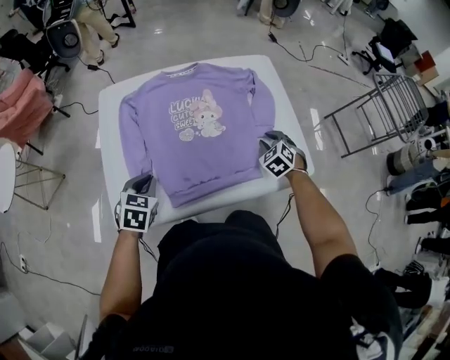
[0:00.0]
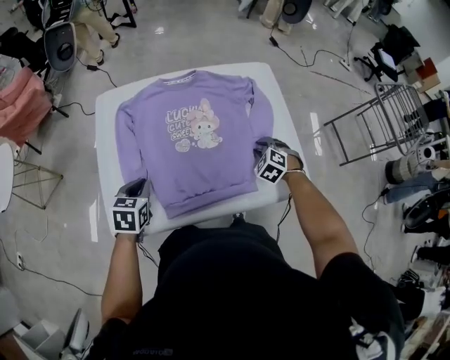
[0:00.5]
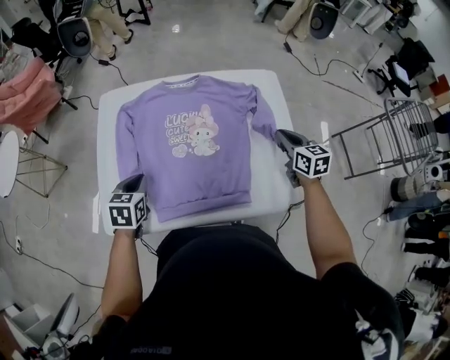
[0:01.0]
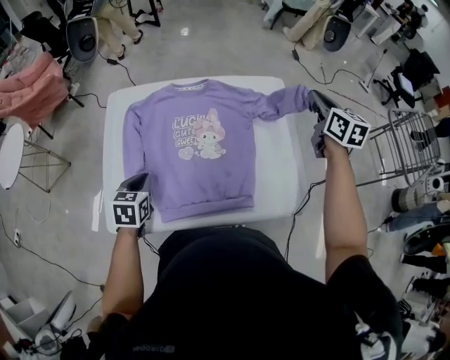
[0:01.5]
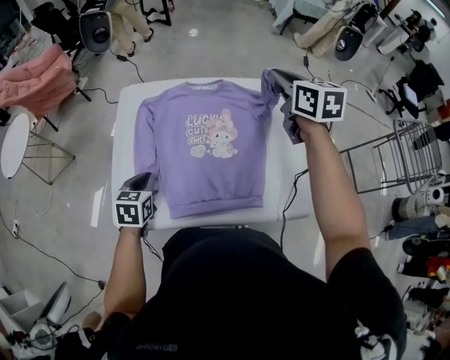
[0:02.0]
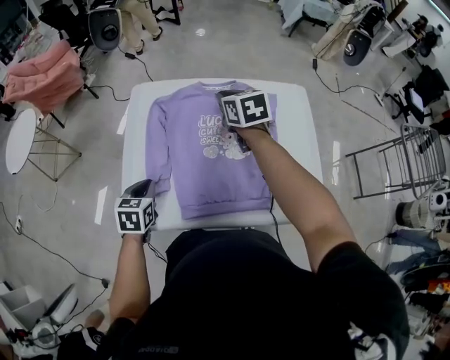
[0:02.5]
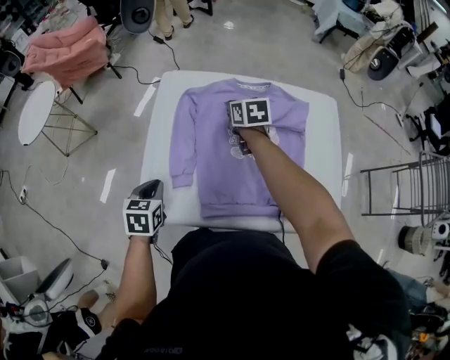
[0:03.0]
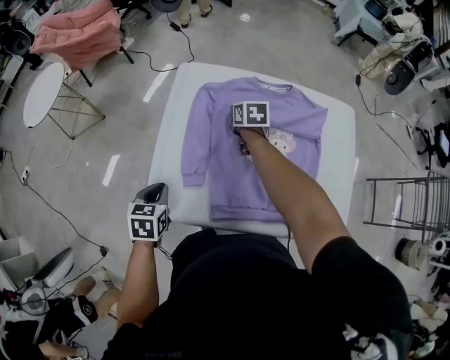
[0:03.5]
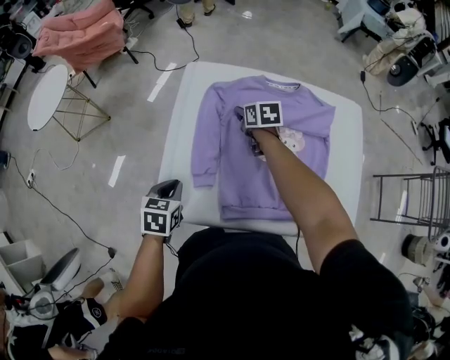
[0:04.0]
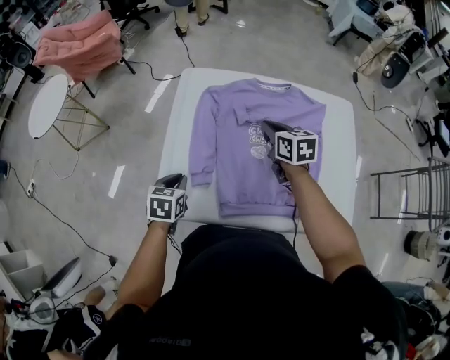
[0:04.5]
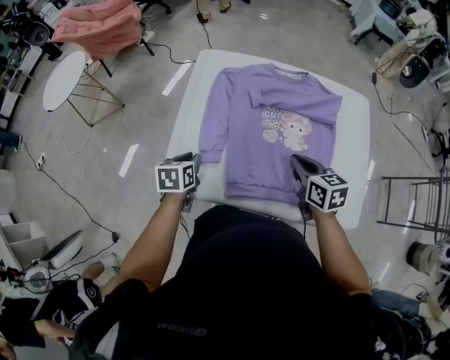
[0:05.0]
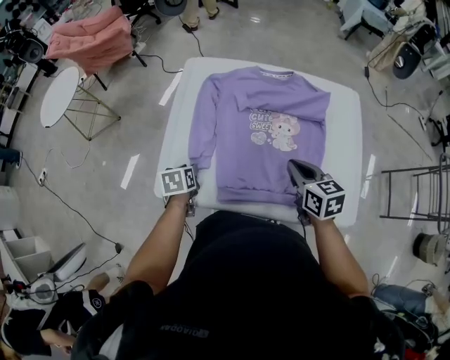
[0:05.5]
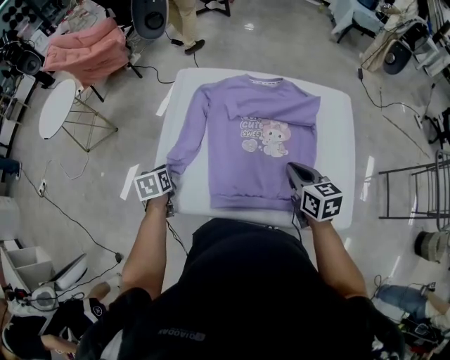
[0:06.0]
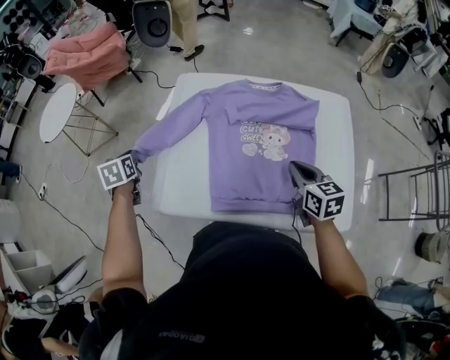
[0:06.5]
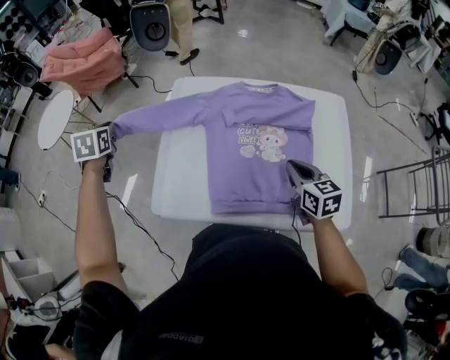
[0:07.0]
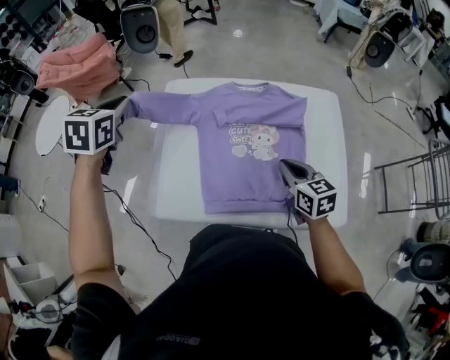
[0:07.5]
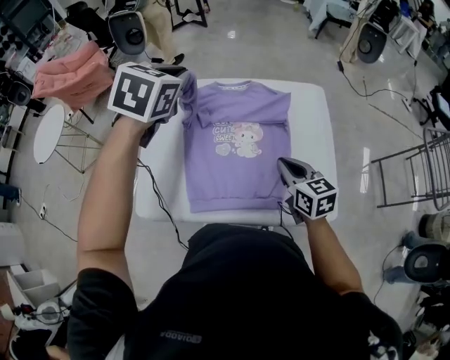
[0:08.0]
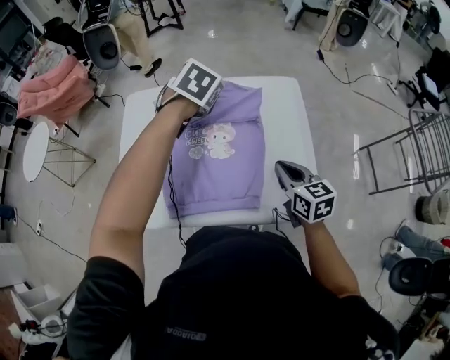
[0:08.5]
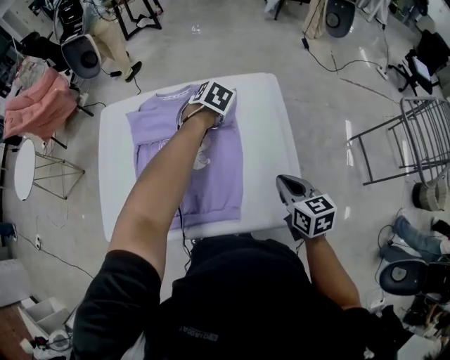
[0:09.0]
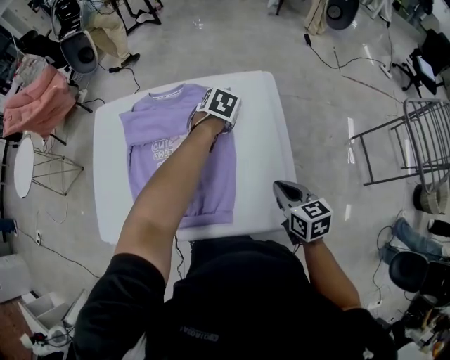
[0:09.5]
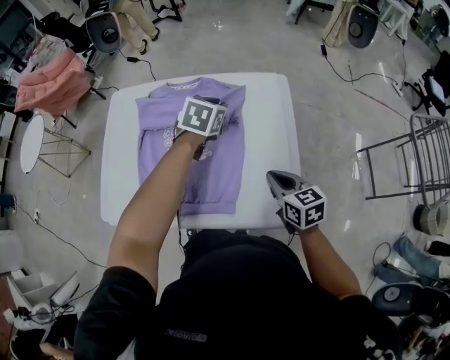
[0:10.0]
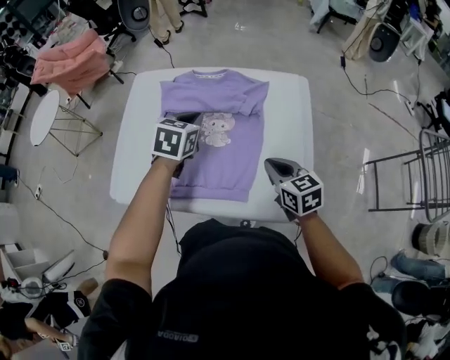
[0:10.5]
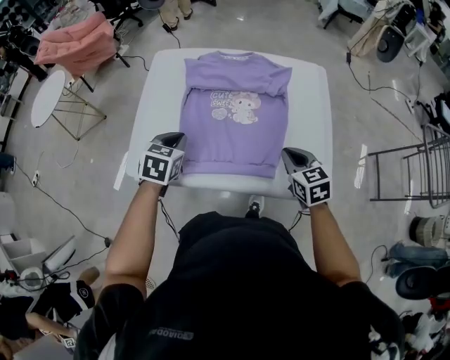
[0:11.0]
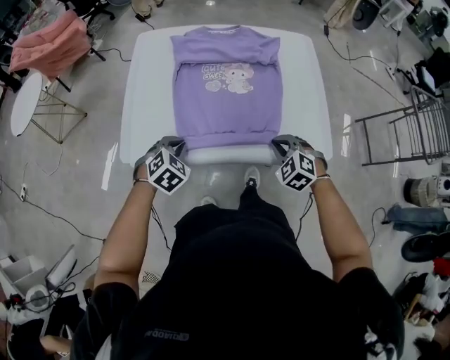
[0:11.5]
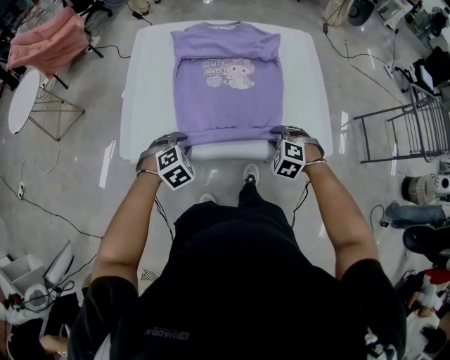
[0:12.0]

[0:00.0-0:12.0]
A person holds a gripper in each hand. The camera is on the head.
0:00.0 to 0:02.0: The right gripper goes some 35 cm upward and forward, rotates approximately 50 degrees, and closes, while the left gripper rotates approximately 20 degrees.
0:02.0 to 0:04.0: The right gripper heads downward and to the left, covering approximately 40 cm, turns by roughly 30 degrees, and opens up. The left gripper is displaced to the left by roughly 15 cm.
0:04.0 to 0:06.0: The left gripper moves approximately 5 cm, changes its angle by approximately 20 degrees, and opens, then closes once more. The right gripper moves backward and to the right, some 30 cm, and closes up.
0:06.0 to 0:08.0: The right gripper shifts about 5 cm to the right, while the left gripper moves upward and to the right, some 40 cm, and rolls clockwise, seen from behind, by approximately 50 degrees.
0:08.0 to 0:10.0: The right gripper travels to the right and downward by some 15 cm, while the left gripper travels to the right and downward by approximately 30 cm.
0:10.0 to 0:12.0: The left gripper heads backward, to the left and downward, covering some 50 cm, and changes its angle by about 40 degrees; the right gripper is displaced to the left, downward and backward by approximately 20 cm, twists approximately 70 degrees counterclockwise, seen from behind, and opens up.

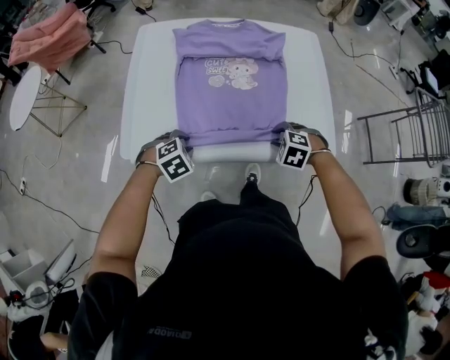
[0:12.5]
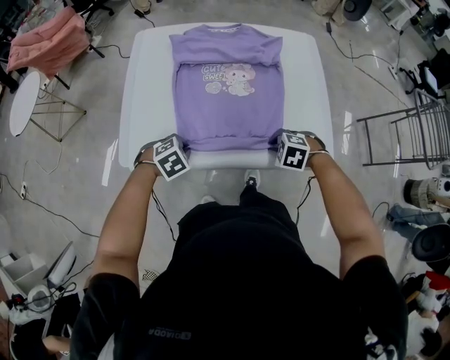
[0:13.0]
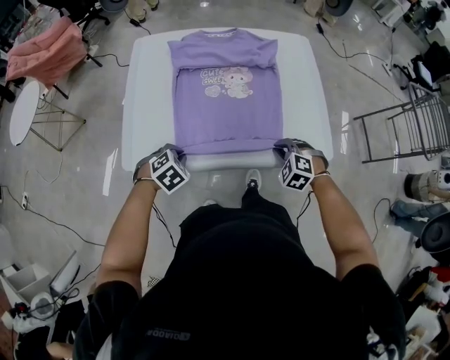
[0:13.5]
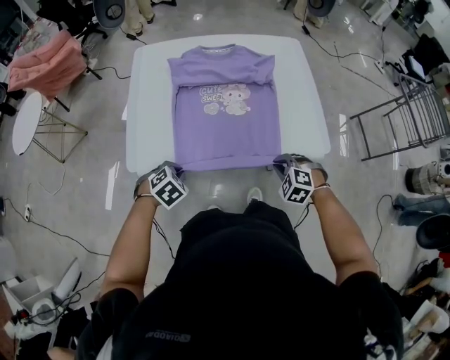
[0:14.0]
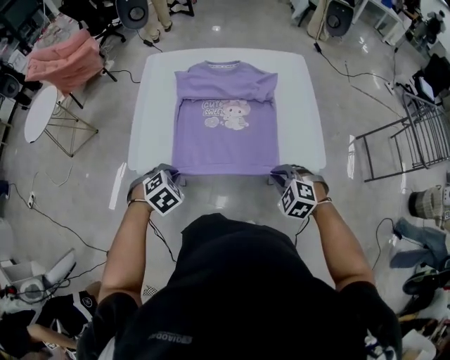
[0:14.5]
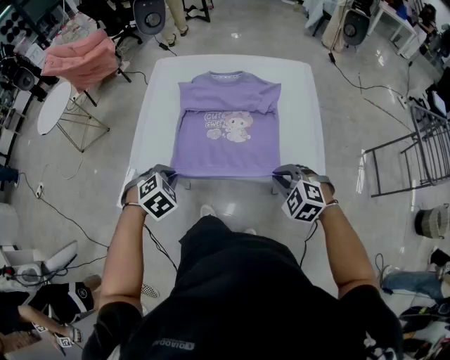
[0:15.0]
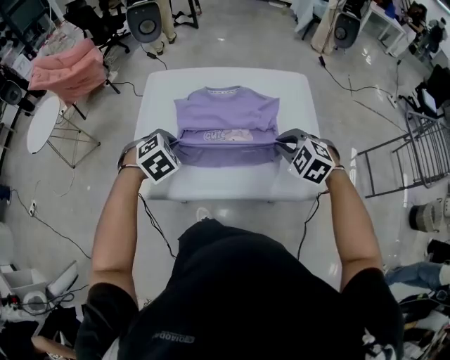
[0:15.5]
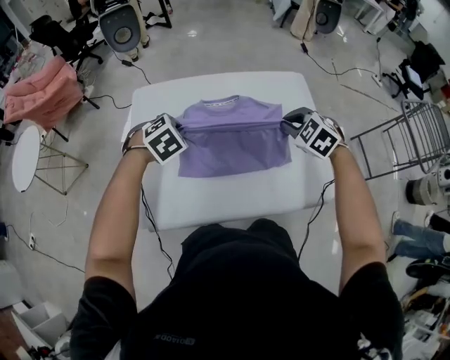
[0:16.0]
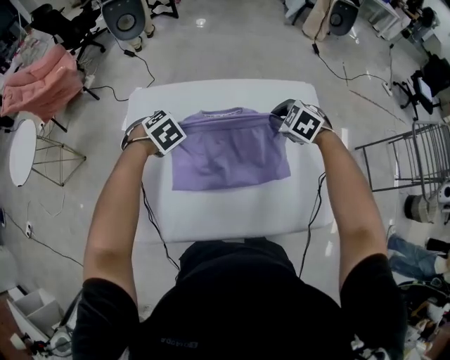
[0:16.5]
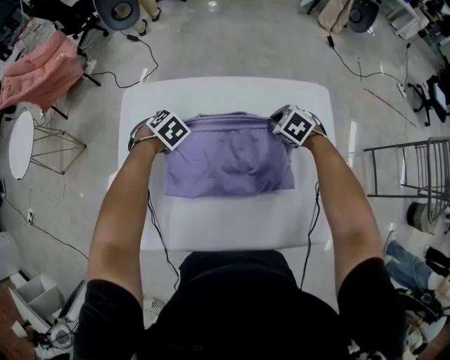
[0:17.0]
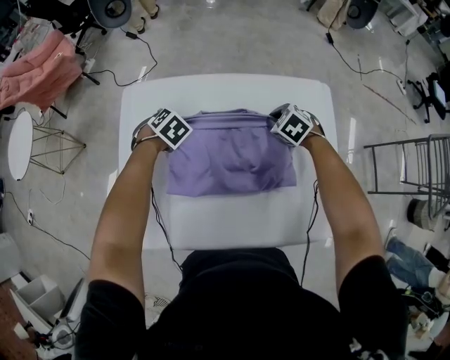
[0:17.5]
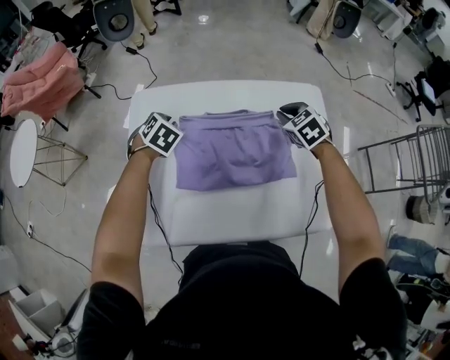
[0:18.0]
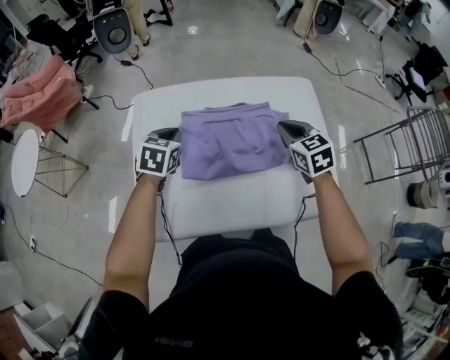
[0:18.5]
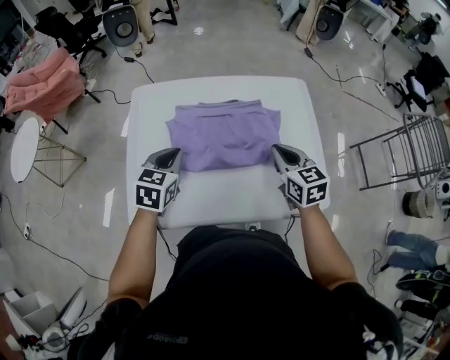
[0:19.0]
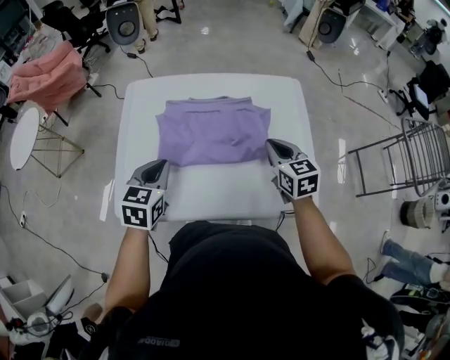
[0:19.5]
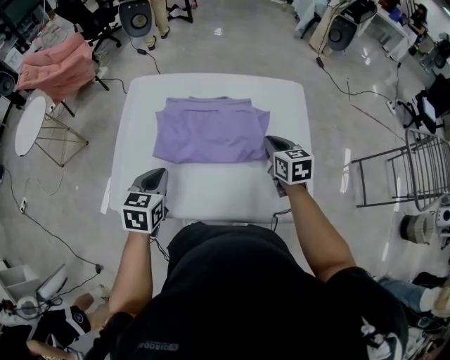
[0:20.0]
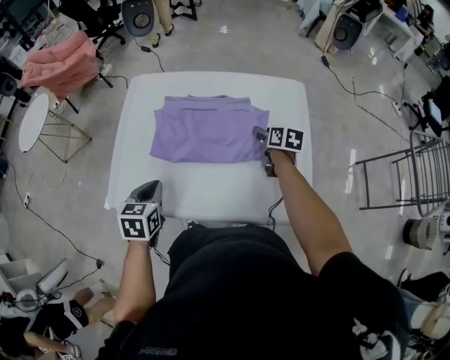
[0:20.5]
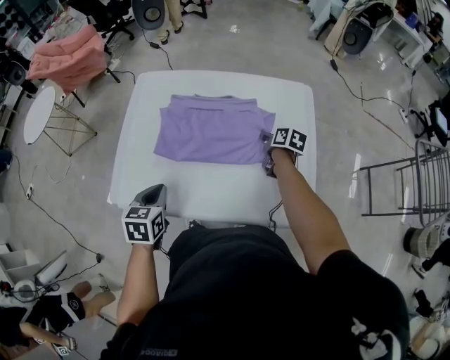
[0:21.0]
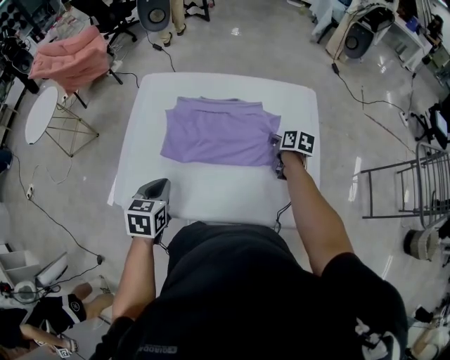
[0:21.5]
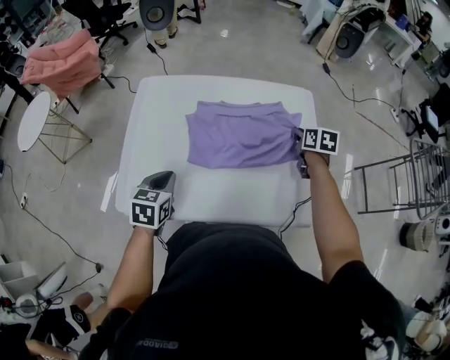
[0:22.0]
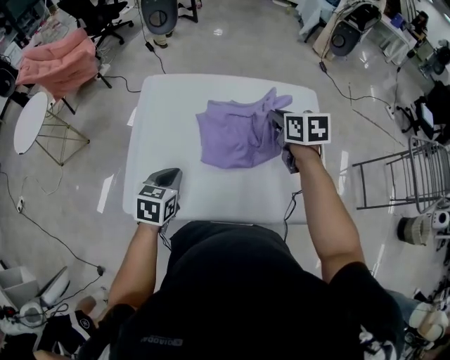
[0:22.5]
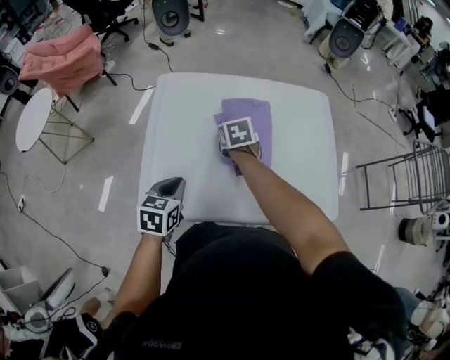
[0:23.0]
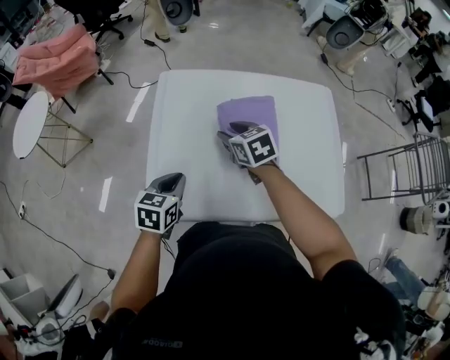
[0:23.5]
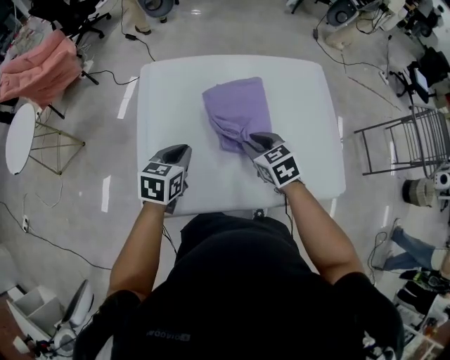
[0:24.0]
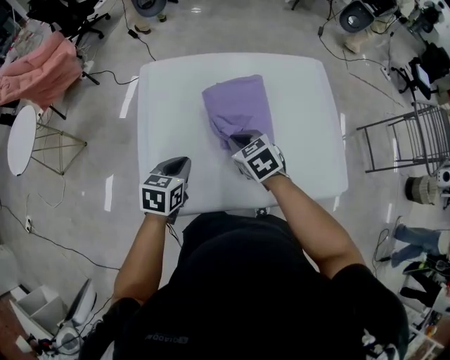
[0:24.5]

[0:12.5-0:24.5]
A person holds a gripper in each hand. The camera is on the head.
0:12.5 to 0:14.5: The right gripper ends up about 15 cm from where it was, and closes up. Meanwhile the left gripper changes place by approximately 10 cm, and closes.
0:14.5 to 0:16.5: The pair of grippers is taken forward, about 40 cm.
0:16.5 to 0:18.5: The right gripper travels downward and back again, approximately 10 cm each way, and rotates approximately 40 degrees; the left gripper travels downward and back again, some 10 cm each way, and changes its angle by roughly 40 degrees.
0:18.5 to 0:20.5: The left gripper is displaced backward by approximately 25 cm, and swivels roughly 20 degrees, while the right gripper travels downward and to the right by some 15 cm, changes its angle by approximately 40 degrees, and opens.
0:20.5 to 0:22.5: The right gripper is displaced upward and to the left by some 20 cm, and closes. The left gripper heads forward, covering approximately 5 cm.
0:22.5 to 0:24.5: The right gripper moves left and right over about 25 cm, changing direction 2 times, turns by about 20 degrees, and opens, then closes again.

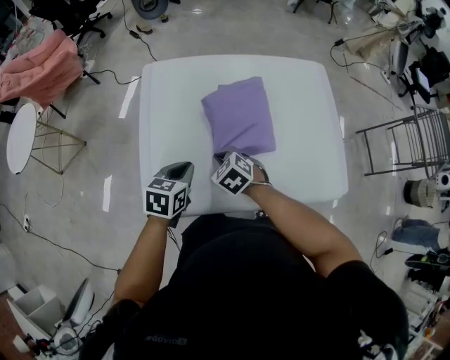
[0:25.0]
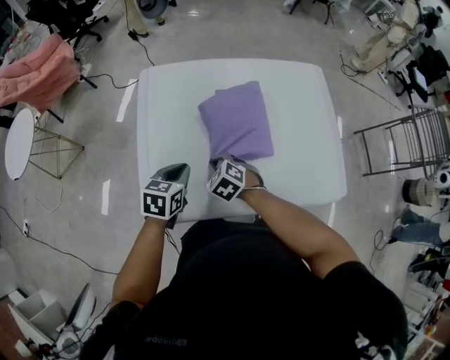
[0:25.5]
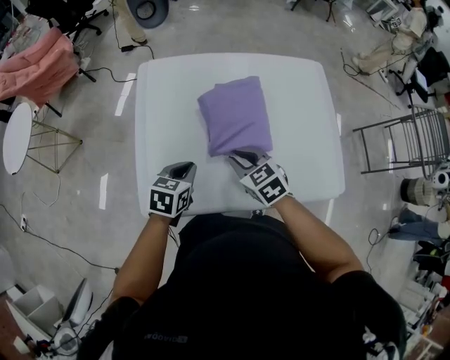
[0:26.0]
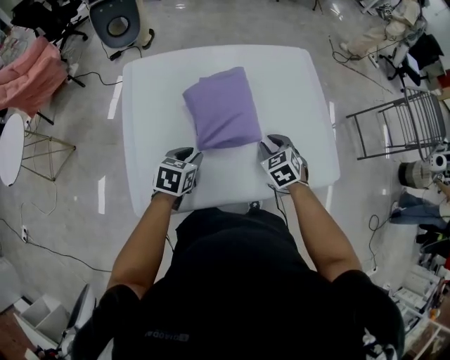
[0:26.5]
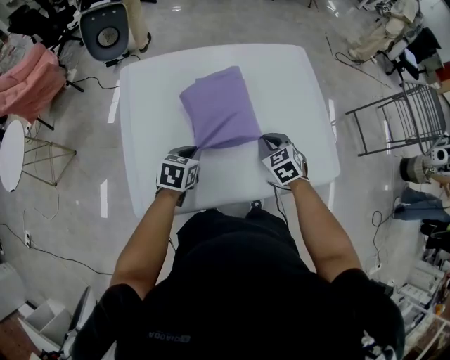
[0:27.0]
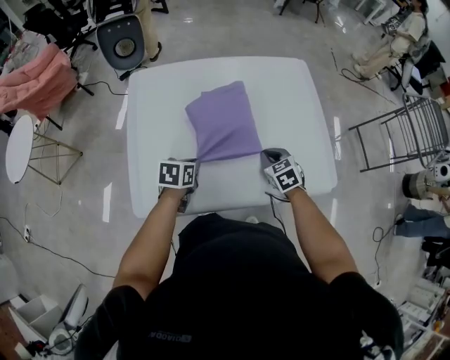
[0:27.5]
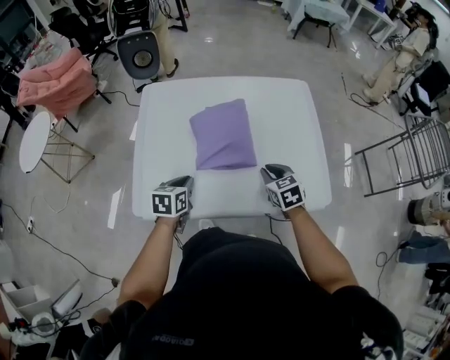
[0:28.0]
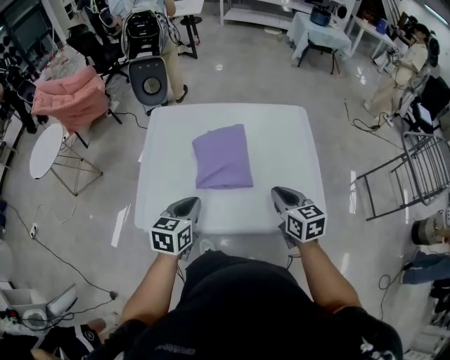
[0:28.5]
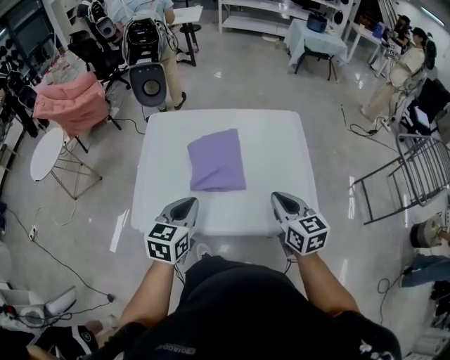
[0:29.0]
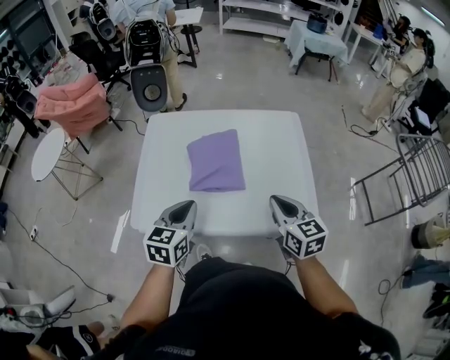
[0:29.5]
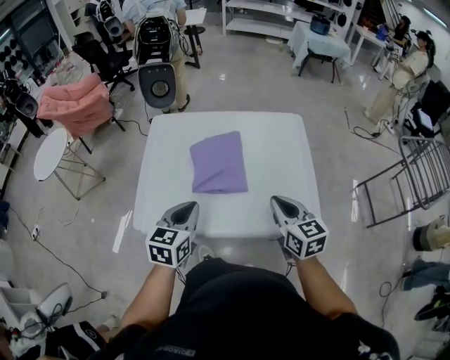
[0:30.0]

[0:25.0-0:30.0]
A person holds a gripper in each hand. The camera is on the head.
0:25.0 to 0:27.5: The left gripper travels downward and to the right by about 10 cm, and opens and closes again. The right gripper heads to the right, covering approximately 25 cm, turns by about 20 degrees, and opens and closes again.
0:27.5 to 0:30.0: Both grippers travel together upward and backward, about 25 cm. The left gripper changes its angle by roughly 30 degrees, while the right gripper turns by approximately 30 degrees.
